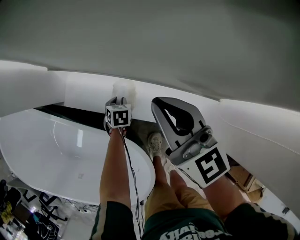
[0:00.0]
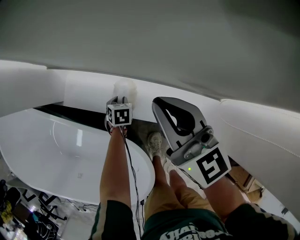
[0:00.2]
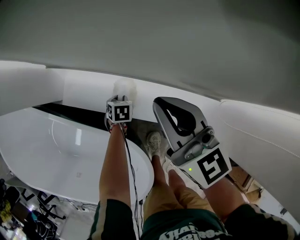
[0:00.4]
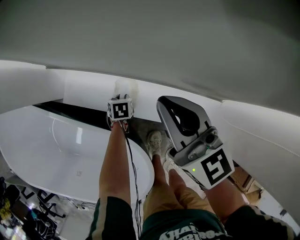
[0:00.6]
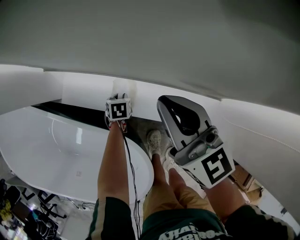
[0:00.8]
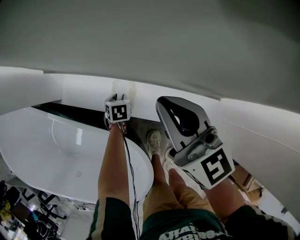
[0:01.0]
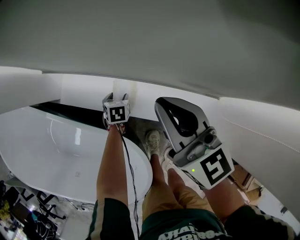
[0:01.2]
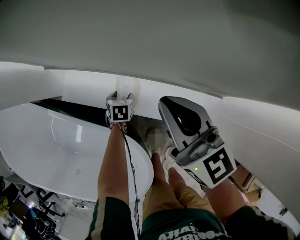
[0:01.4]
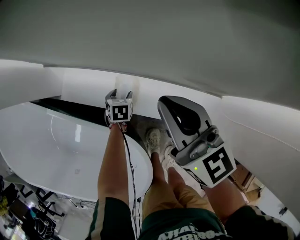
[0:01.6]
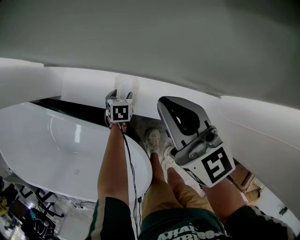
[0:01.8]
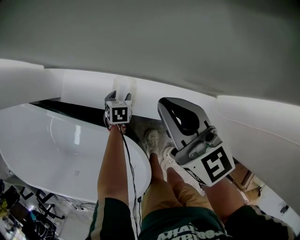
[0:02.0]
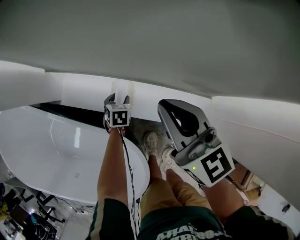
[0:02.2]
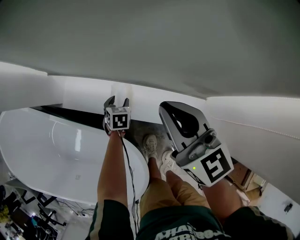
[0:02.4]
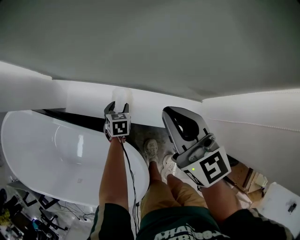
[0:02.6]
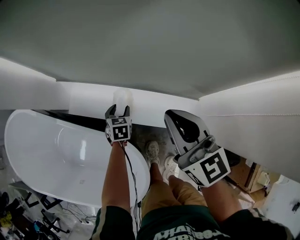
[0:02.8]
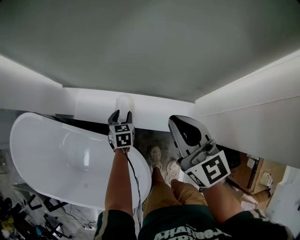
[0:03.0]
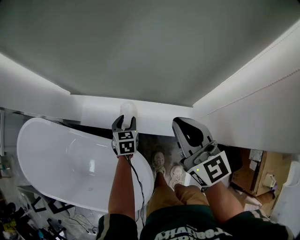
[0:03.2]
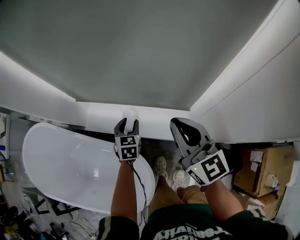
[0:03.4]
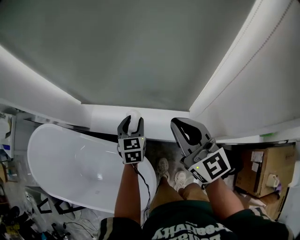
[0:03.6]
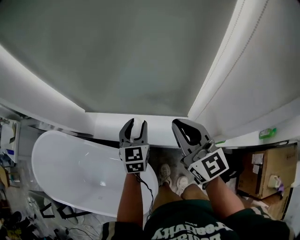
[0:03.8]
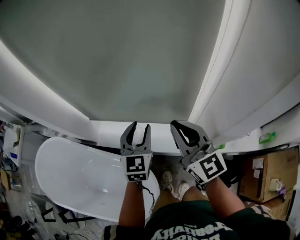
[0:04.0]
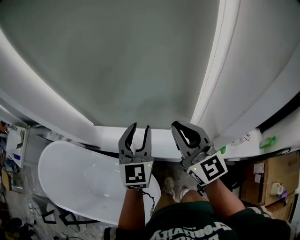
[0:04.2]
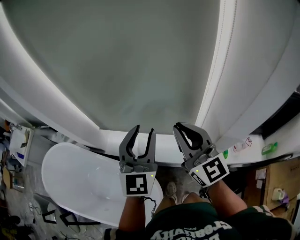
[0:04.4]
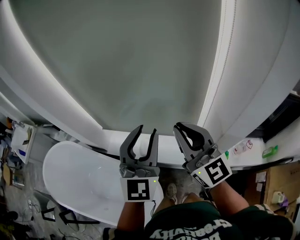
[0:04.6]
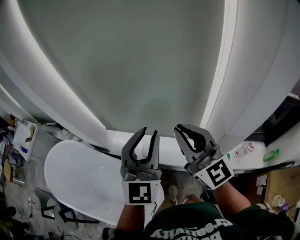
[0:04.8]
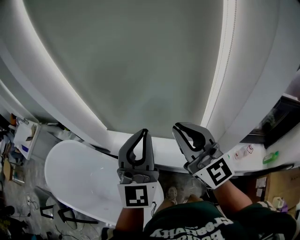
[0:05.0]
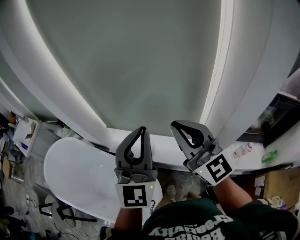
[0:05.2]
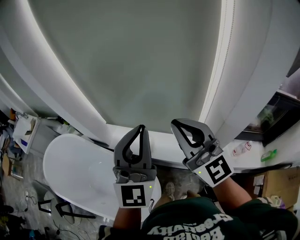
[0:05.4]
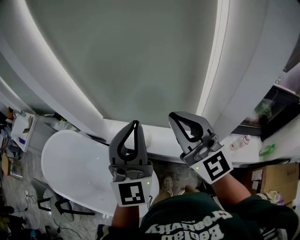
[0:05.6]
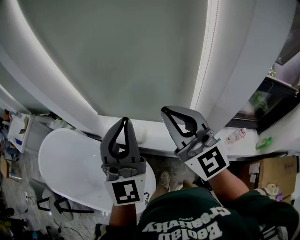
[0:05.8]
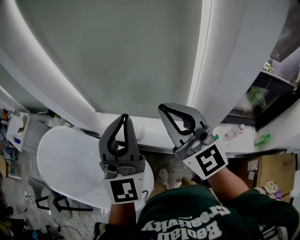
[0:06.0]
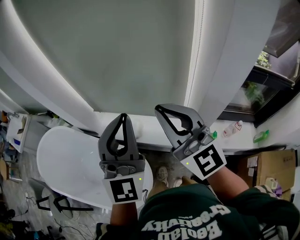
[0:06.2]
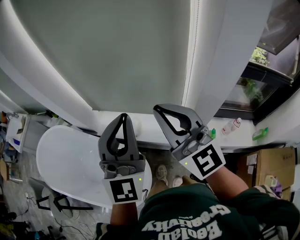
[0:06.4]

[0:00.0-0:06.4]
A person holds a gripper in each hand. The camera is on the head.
0.0 to 1.6 s: The left gripper opens up.
1.6 to 3.2 s: The left gripper heads upward, covering about 20 cm; the right gripper moves upward, backward and to the right, about 20 cm.
3.2 to 4.8 s: The right gripper travels upward by about 25 cm, and turns by some 30 degrees. The left gripper heads upward, covering about 50 cm, and angles its fingers upward, by about 50 degrees.
4.8 to 6.4 s: Both grippers travel together backward, some 10 cm.

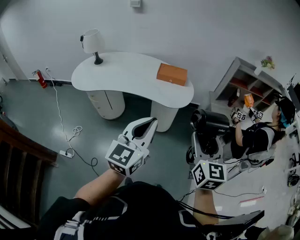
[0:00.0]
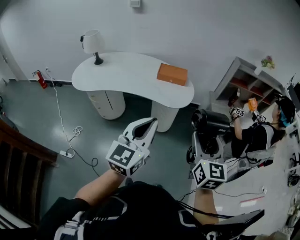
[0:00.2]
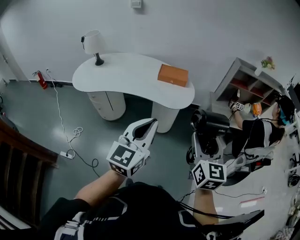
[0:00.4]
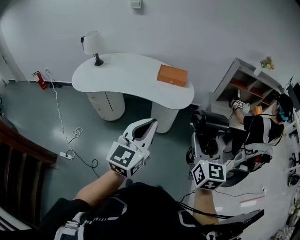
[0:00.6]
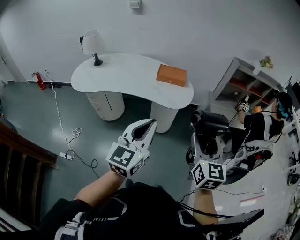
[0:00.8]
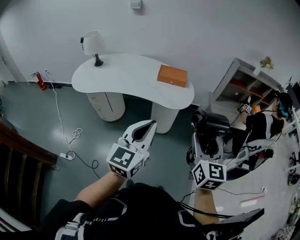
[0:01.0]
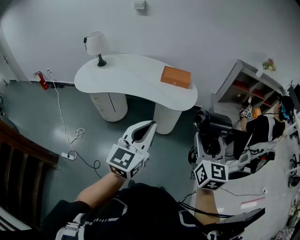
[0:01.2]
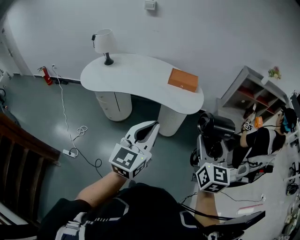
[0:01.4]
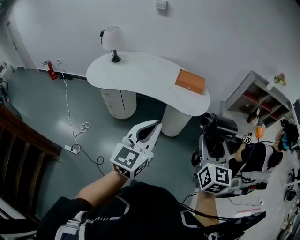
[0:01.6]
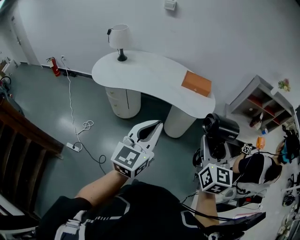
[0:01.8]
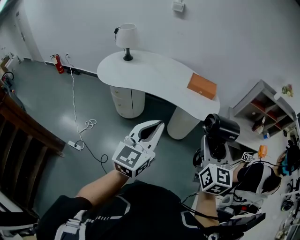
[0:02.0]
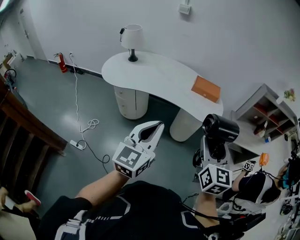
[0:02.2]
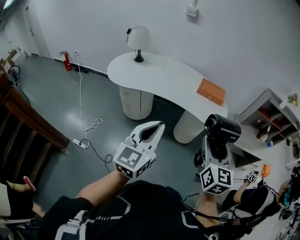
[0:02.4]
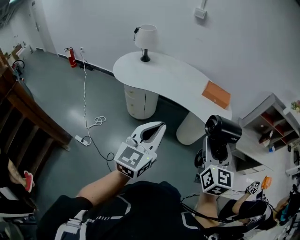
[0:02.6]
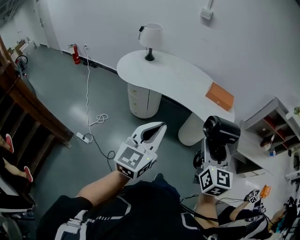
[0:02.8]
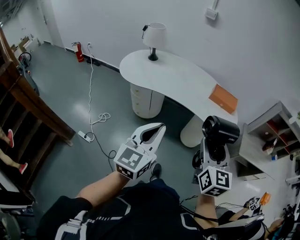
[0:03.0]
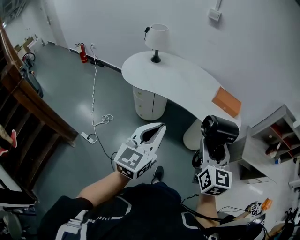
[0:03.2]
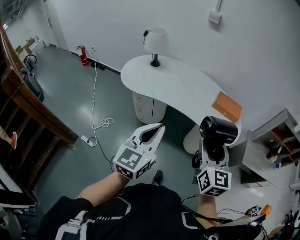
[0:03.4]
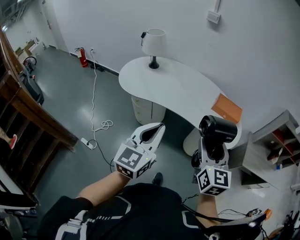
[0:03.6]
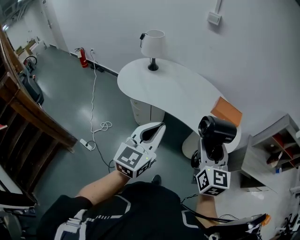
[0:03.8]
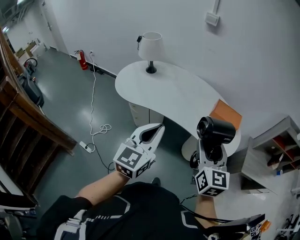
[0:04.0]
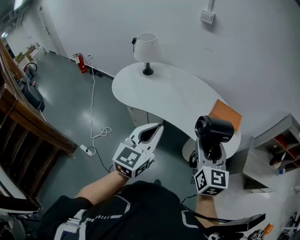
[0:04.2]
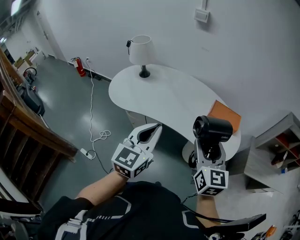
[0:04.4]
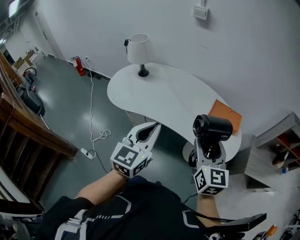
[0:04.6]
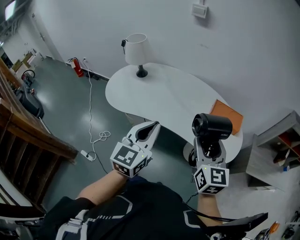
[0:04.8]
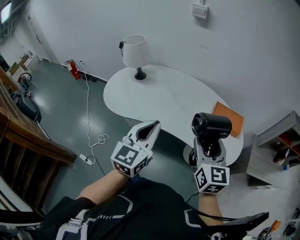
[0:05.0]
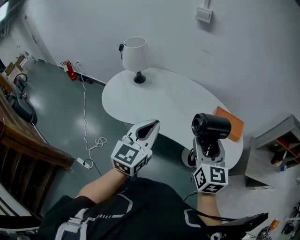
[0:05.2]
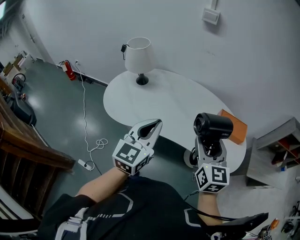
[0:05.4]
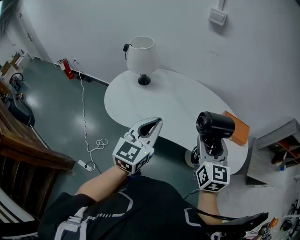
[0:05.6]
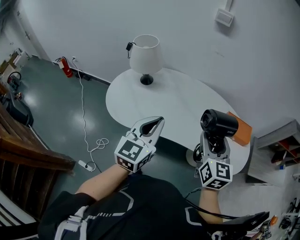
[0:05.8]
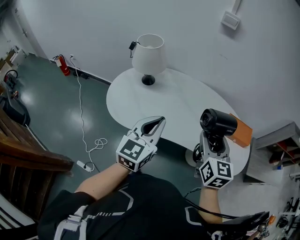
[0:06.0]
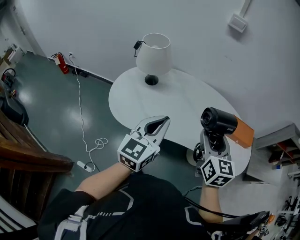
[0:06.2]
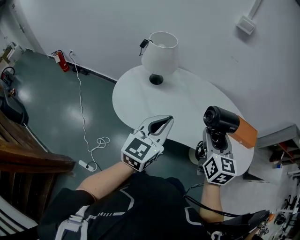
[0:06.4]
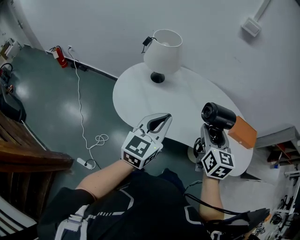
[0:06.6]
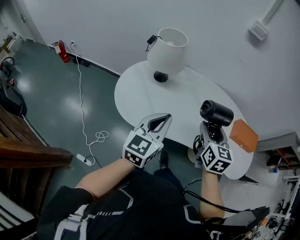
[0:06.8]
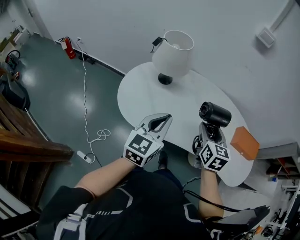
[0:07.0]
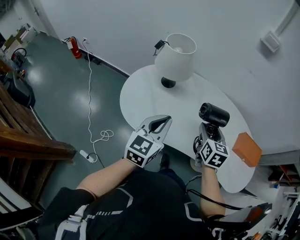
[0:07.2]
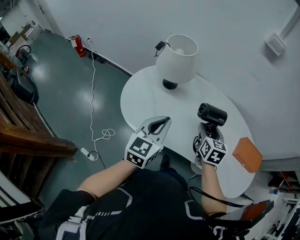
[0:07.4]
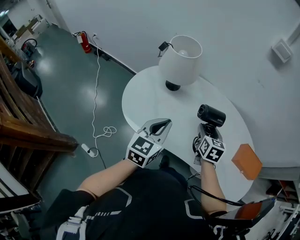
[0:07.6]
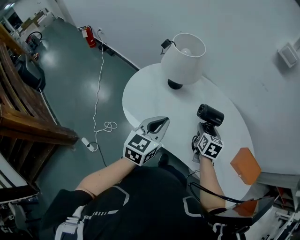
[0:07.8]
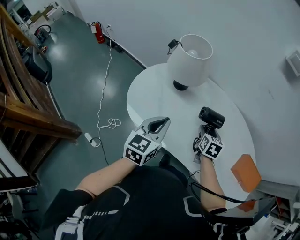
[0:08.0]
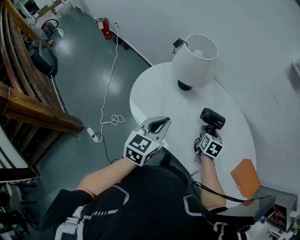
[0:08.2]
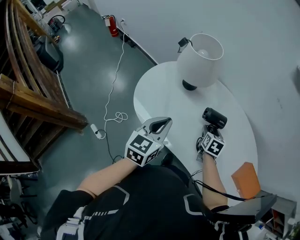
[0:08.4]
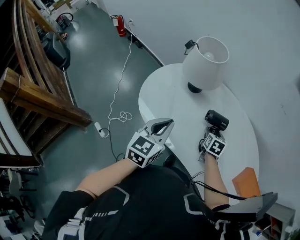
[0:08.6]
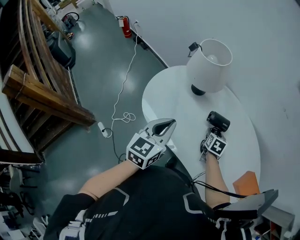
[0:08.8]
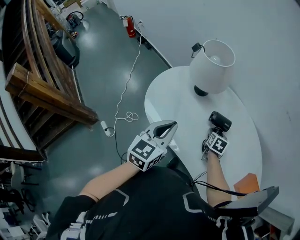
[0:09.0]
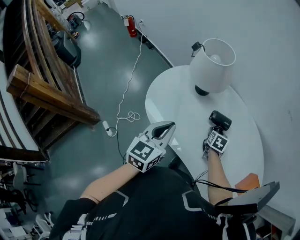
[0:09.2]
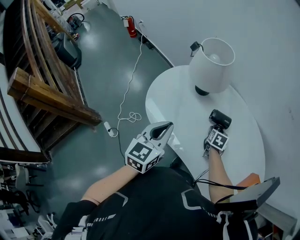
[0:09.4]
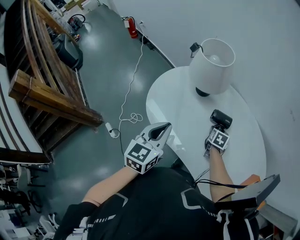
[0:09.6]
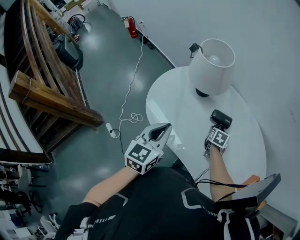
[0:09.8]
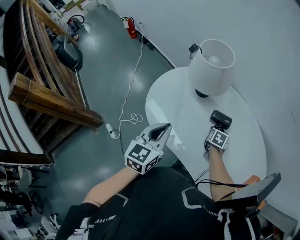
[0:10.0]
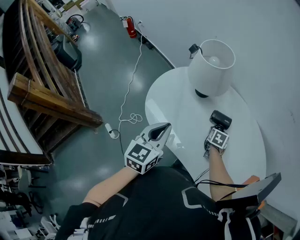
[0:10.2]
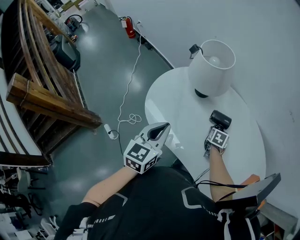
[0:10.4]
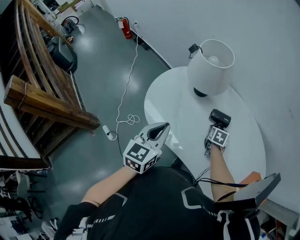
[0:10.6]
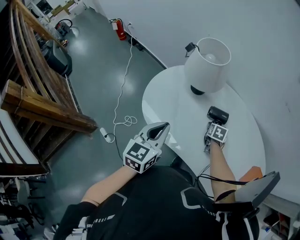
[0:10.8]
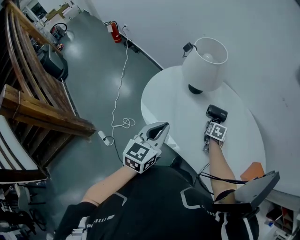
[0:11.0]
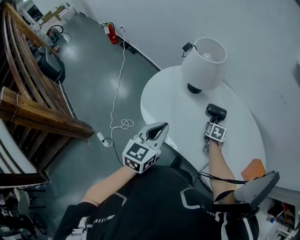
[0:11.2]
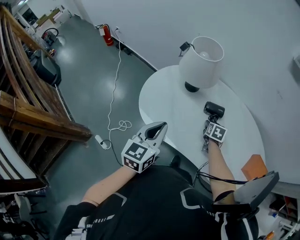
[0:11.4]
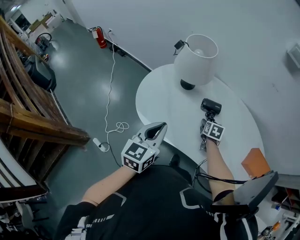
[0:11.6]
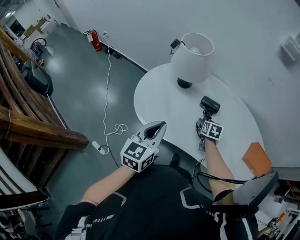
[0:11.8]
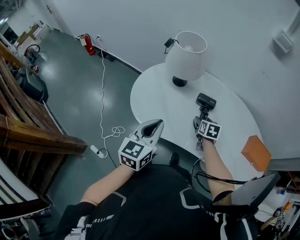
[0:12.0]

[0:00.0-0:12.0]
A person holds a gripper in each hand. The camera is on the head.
0.0 to 1.6 s: Both grippers move to the left, about 10 cm.
1.6 to 3.0 s: The grippers both shift to the left by about 15 cm.
3.0 to 4.4 s: Both grippers move forward, approximately 20 cm.
4.4 to 6.0 s: Both grippers travel together to the left and forward, roughly 25 cm.
6.0 to 7.6 s: The left gripper moves forward, to the left and downward, some 15 cm. Meanwhile the right gripper moves forward, downward and to the left, some 30 cm, and changes its angle by some 20 degrees.
7.6 to 9.0 s: The right gripper goes approximately 15 cm downward and forward.
9.0 to 10.4 s: There are only small adjustments of the grippers.
10.4 to 12.0 s: The left gripper shifts by some 5 cm. Meanwhile the right gripper travels backward and upward by about 10 cm.

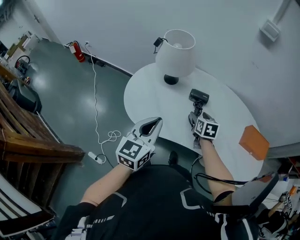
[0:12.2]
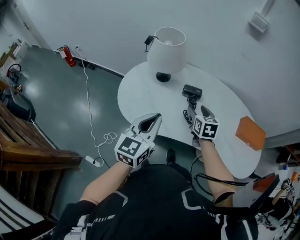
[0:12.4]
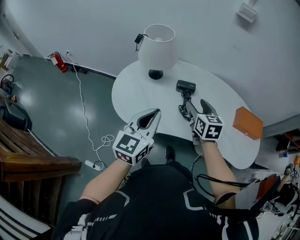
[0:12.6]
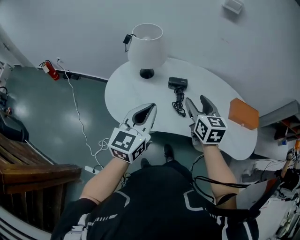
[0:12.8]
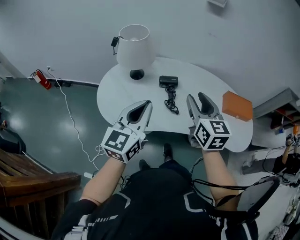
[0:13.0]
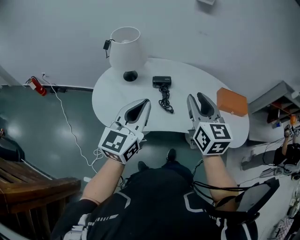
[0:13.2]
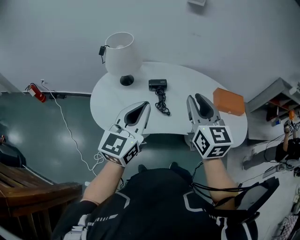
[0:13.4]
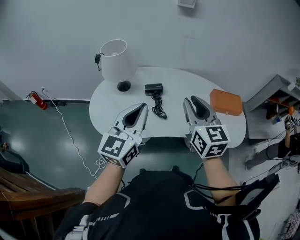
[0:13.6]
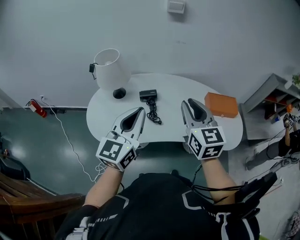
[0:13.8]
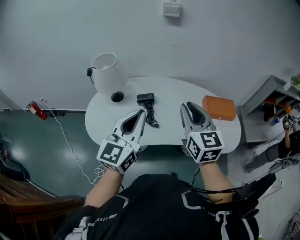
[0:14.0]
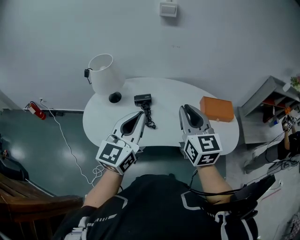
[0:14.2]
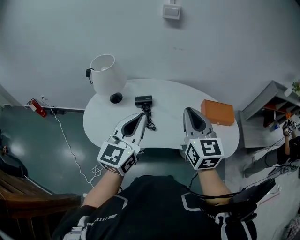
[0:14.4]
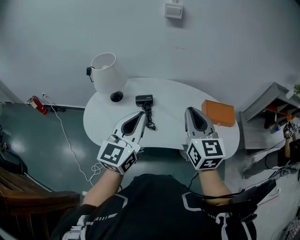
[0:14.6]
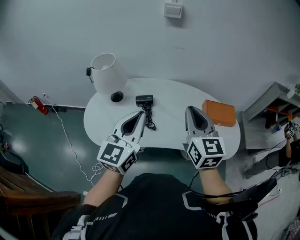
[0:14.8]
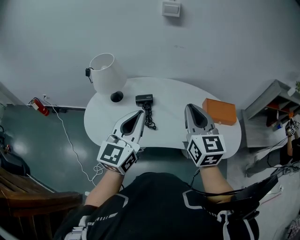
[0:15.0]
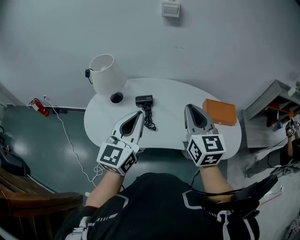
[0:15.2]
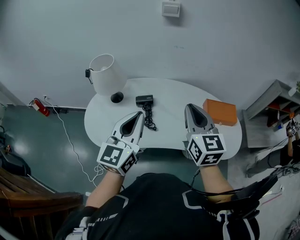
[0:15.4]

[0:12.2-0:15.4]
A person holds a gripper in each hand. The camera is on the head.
12.2 to 13.8 s: The right gripper goes about 35 cm upward, backward and to the right, tilts its fingers roughly 30 degrees upward, and closes its fingers, while the left gripper heads upward and to the right, covering approximately 15 cm, and changes its angle by approximately 30 degrees.
13.8 to 15.4 s: The right gripper heads to the right, covering some 5 cm.

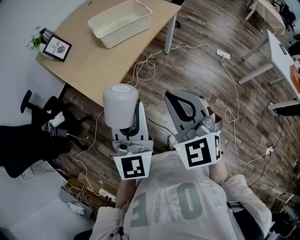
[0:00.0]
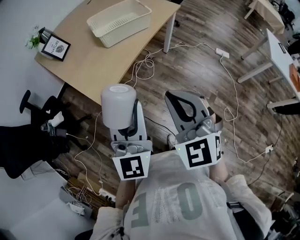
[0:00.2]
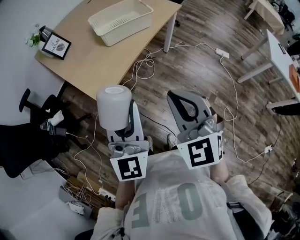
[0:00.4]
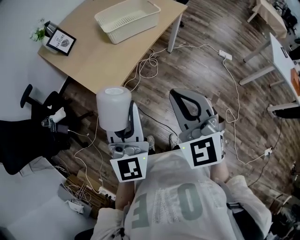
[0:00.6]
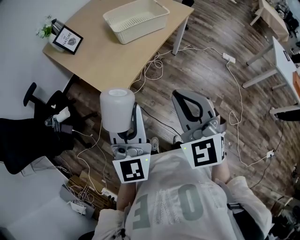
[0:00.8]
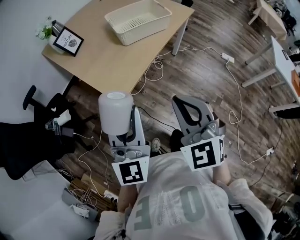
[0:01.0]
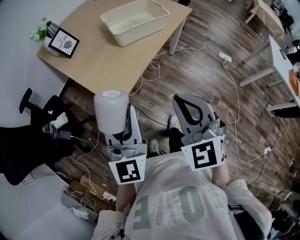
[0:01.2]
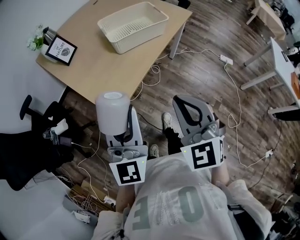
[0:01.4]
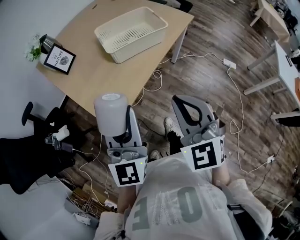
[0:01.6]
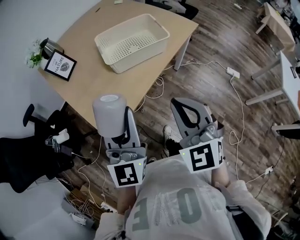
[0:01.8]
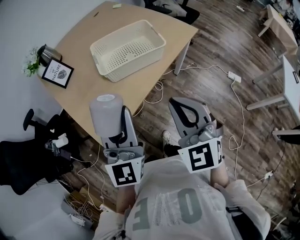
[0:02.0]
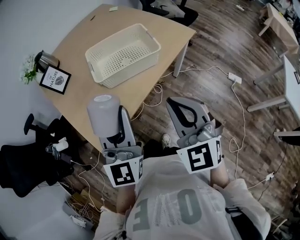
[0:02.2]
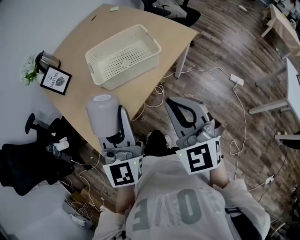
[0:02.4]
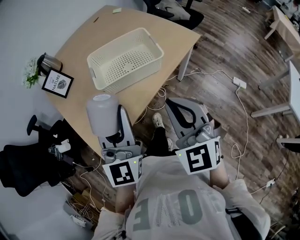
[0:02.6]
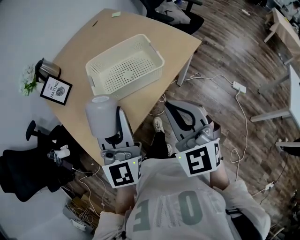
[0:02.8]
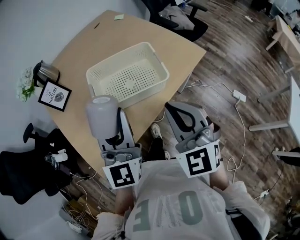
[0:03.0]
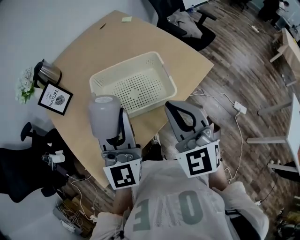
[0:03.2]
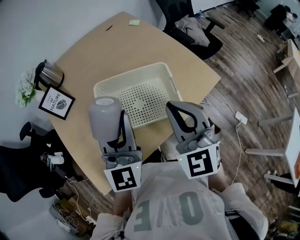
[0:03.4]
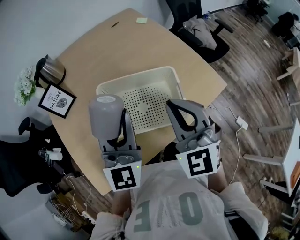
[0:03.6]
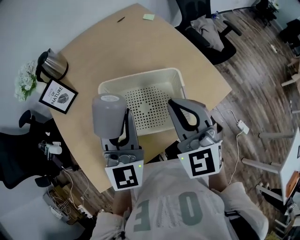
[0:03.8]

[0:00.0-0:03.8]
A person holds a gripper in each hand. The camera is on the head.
0.0 to 1.2 s: The left gripper is displaced to the left by roughly 15 cm, while the right gripper goes approximately 10 cm to the left.
1.2 to 2.6 s: Both grippers travel together forward and to the right, approximately 30 cm.
2.6 to 3.8 s: The grippers both shift forward by some 30 cm.
